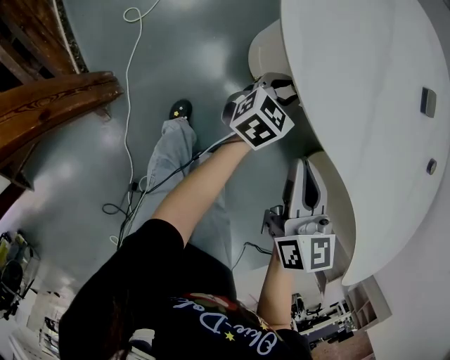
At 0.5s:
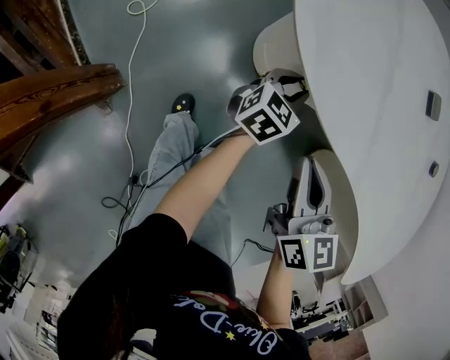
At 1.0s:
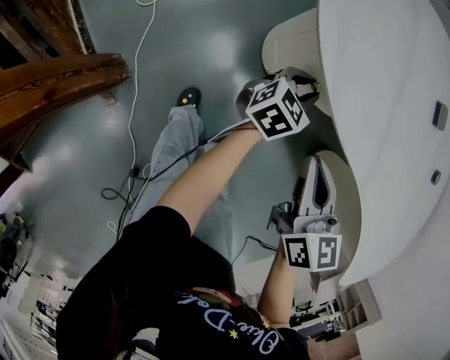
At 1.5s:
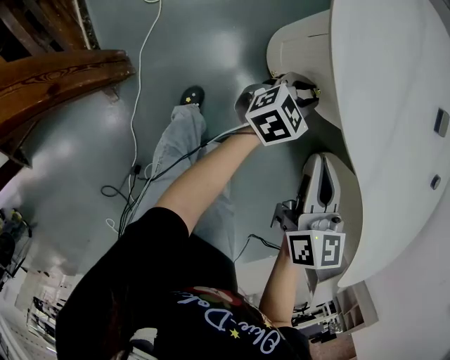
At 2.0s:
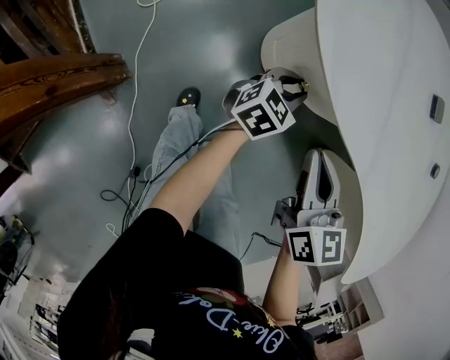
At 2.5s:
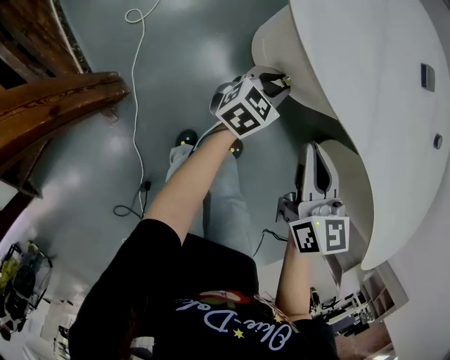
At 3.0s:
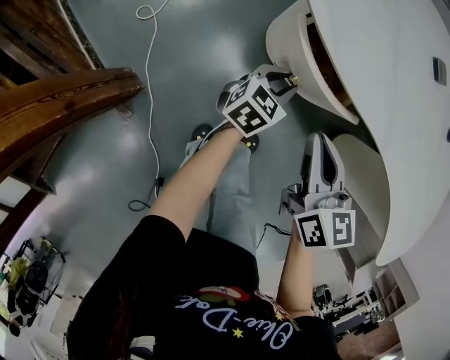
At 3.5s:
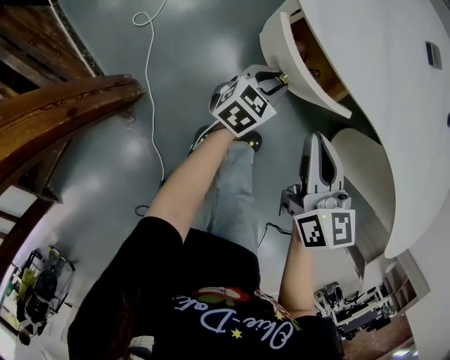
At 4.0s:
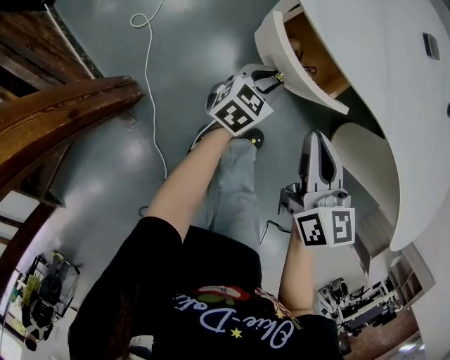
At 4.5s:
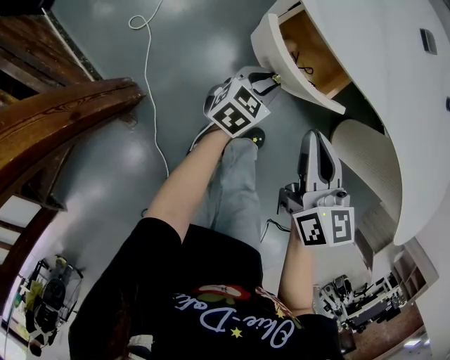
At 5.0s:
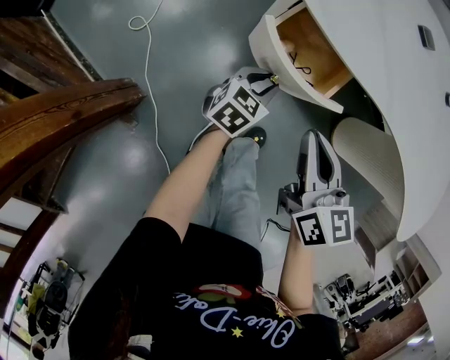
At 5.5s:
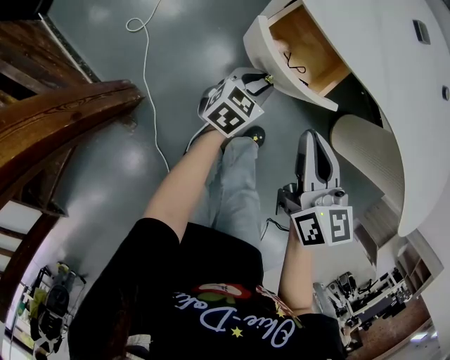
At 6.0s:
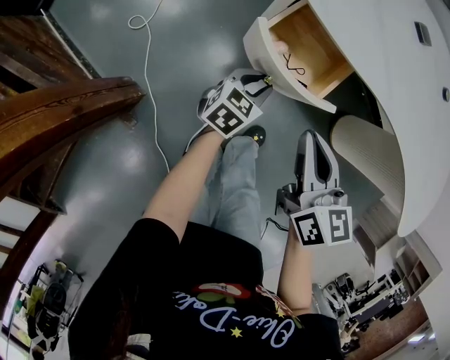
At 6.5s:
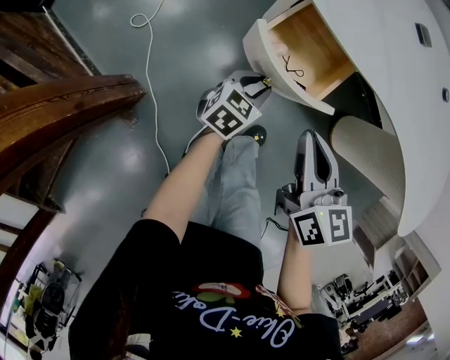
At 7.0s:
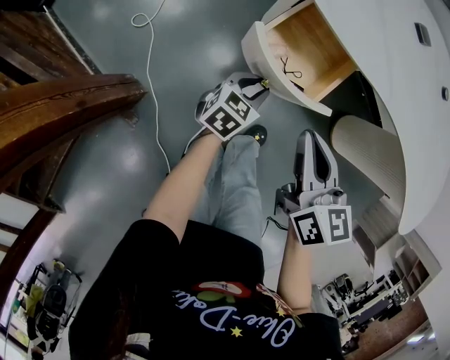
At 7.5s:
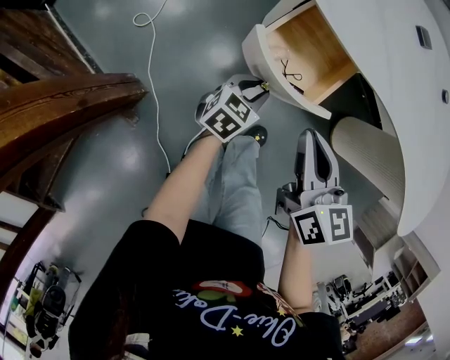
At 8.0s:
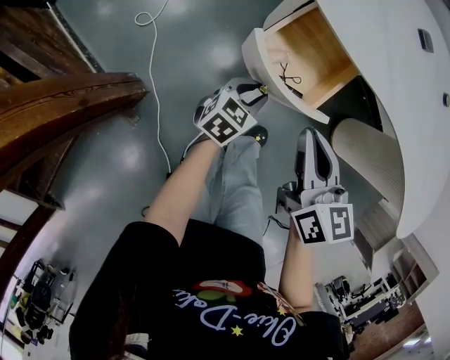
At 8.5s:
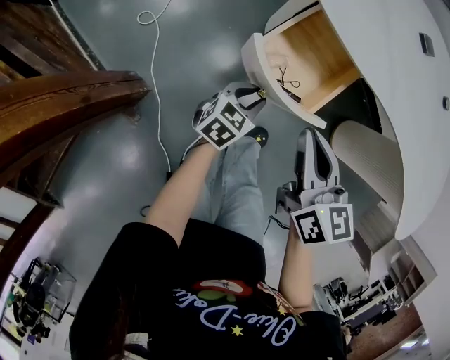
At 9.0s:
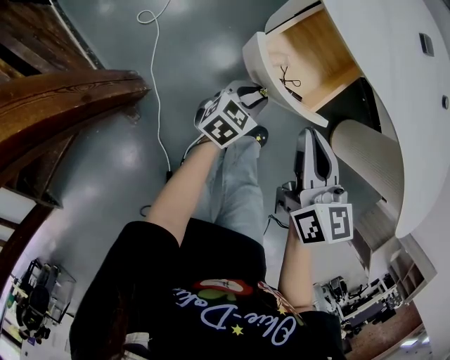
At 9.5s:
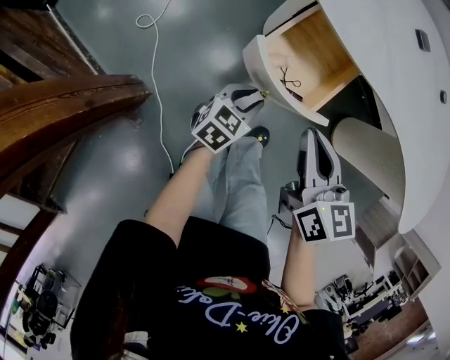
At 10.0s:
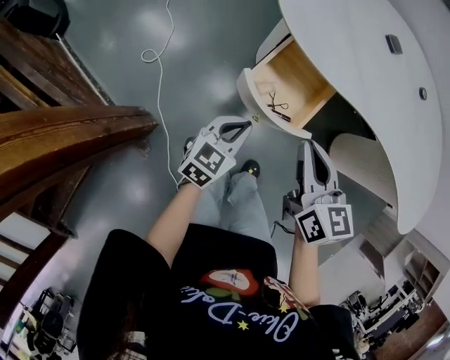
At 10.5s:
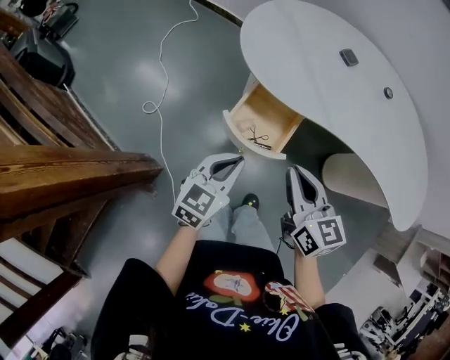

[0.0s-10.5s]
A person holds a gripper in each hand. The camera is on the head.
0.0s to 2.0s: The grippers make only small movements.
2.0s to 4.0s: The grippers both shift backward by about 5 cm.
4.0s to 6.5s: Both grippers move backward, about 5 cm.
6.5s to 8.5s: The grippers move only a little.
8.5s to 10.5s: The left gripper is displaced upward by about 25 cm, and closes up; the right gripper shifts about 10 cm upward.

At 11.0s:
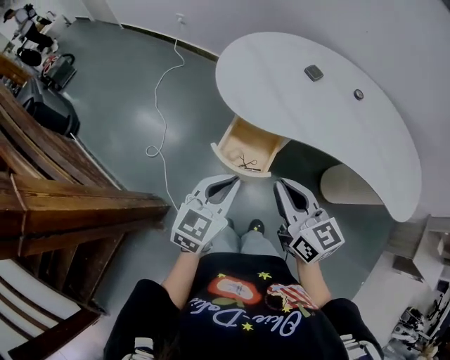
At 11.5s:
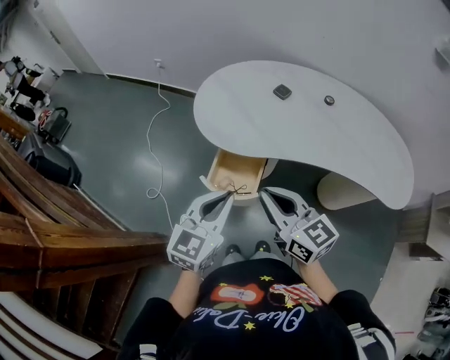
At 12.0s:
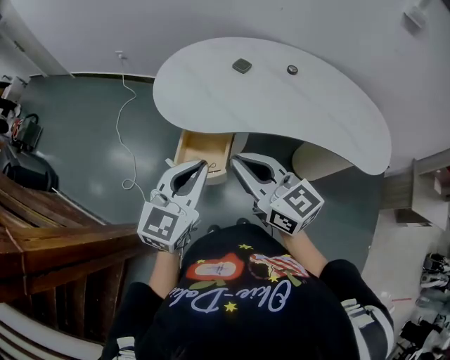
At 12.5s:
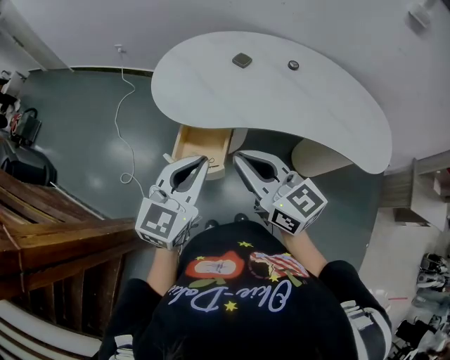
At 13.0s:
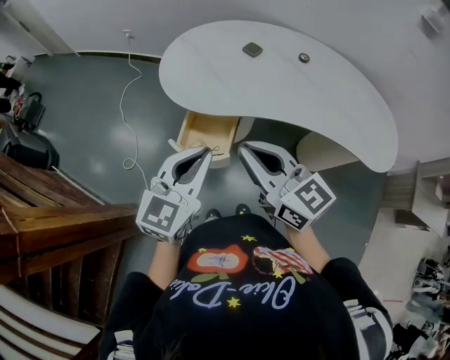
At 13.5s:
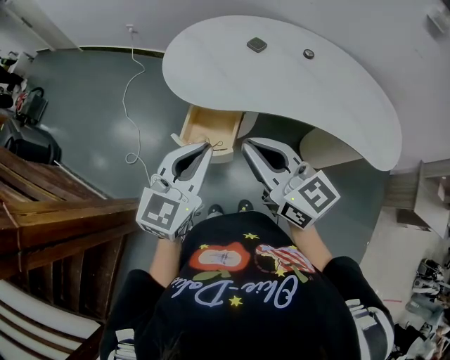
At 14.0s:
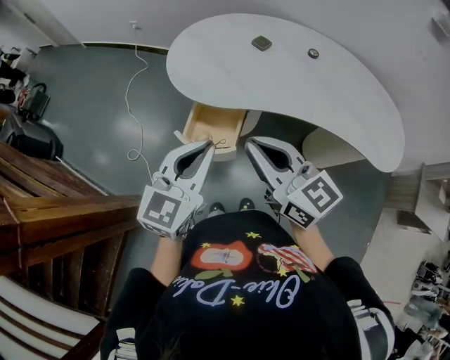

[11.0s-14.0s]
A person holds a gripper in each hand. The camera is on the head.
11.0s to 12.5s: Both grippers move upward and to the right, about 10 cm.
12.5s to 14.0s: The grippers make only small movements.

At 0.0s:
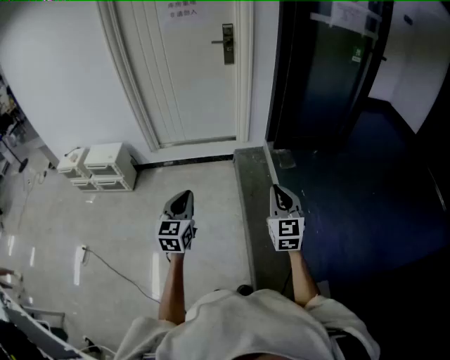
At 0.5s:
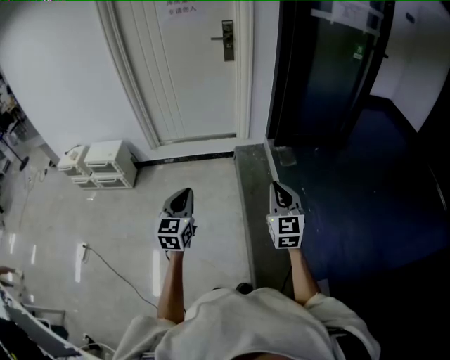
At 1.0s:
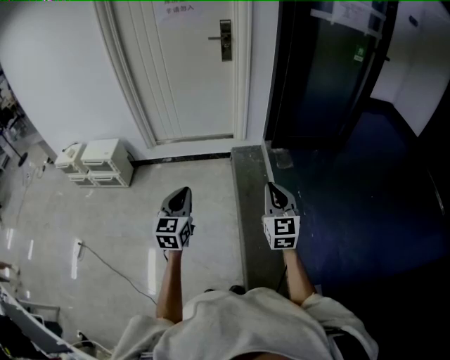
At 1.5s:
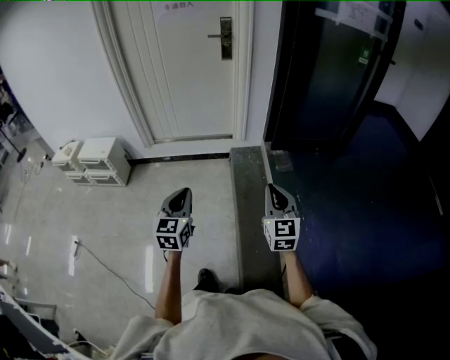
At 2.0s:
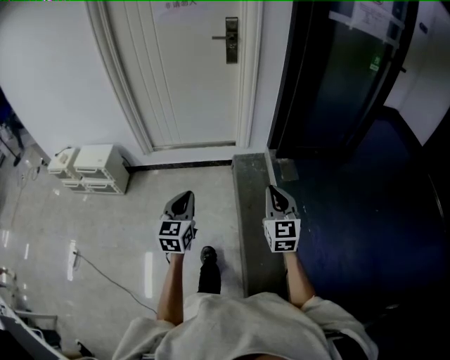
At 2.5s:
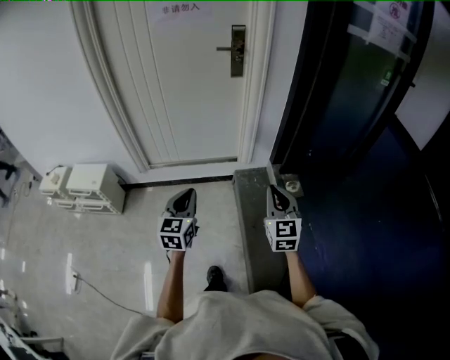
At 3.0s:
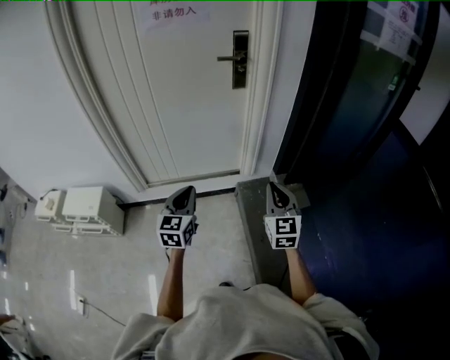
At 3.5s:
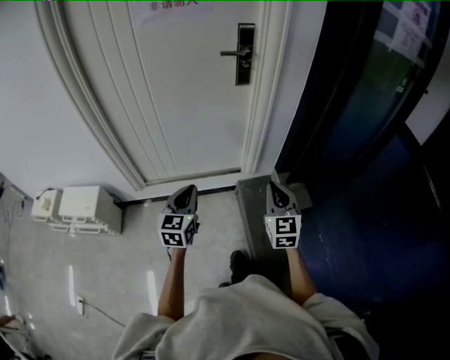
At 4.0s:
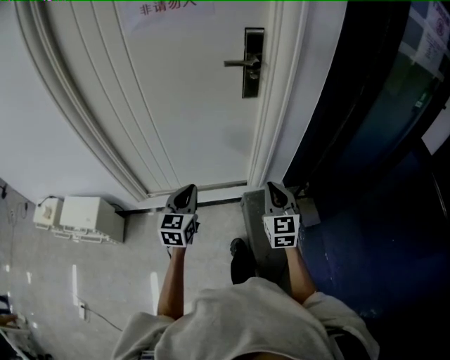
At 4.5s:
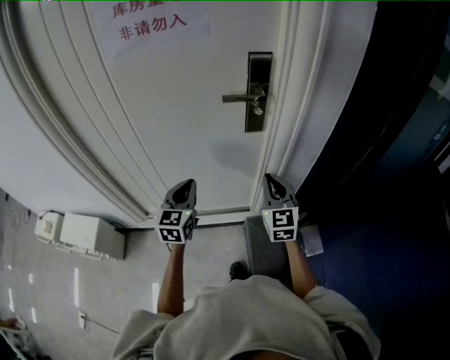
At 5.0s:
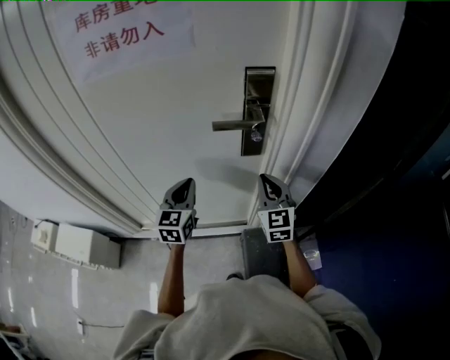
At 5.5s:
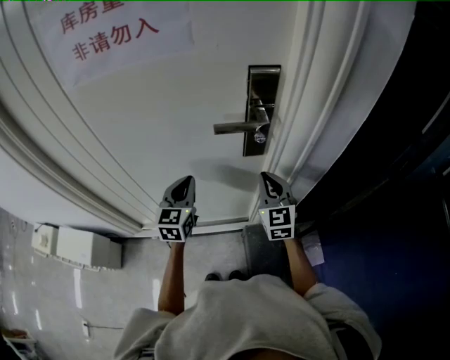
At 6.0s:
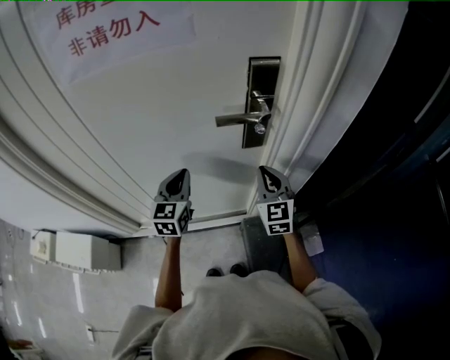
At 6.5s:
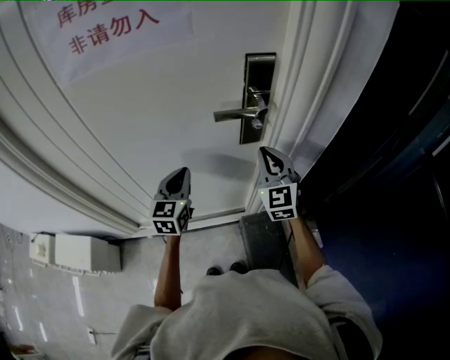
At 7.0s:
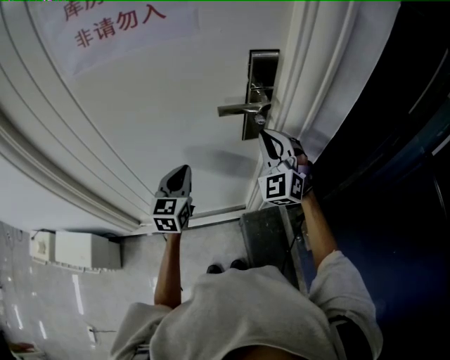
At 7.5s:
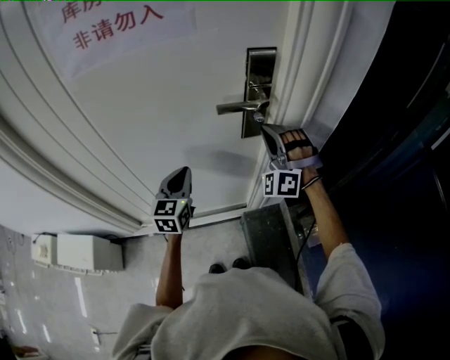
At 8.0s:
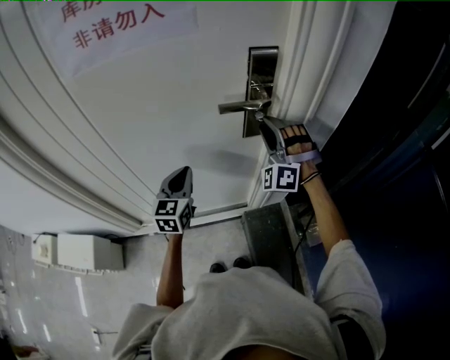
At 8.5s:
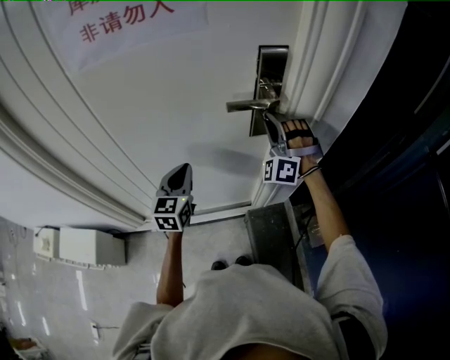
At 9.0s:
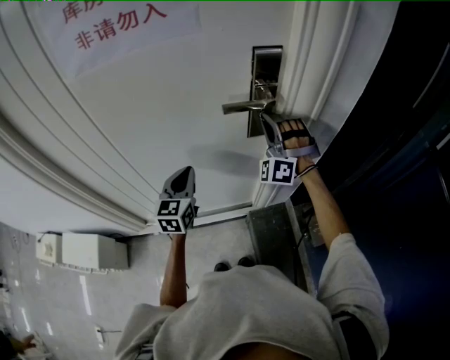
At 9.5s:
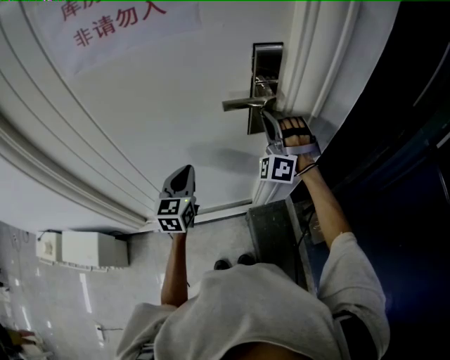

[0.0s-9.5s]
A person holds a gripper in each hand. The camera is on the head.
0.0s to 2.0s: The grippers both shift forward by about 20 cm.
2.0s to 4.0s: Both grippers are carried forward, approximately 50 cm.
4.0s to 5.5s: The grippers both shift forward by roughly 35 cm.
5.5s to 7.5s: The right gripper heads upward, covering roughly 10 cm, and rolls counterclockwise, seen from behind, by some 70 degrees.
7.5s to 9.5s: The right gripper opens, then closes again.

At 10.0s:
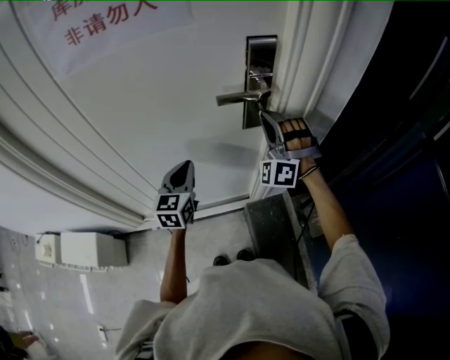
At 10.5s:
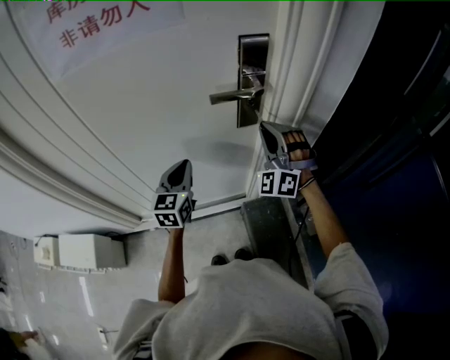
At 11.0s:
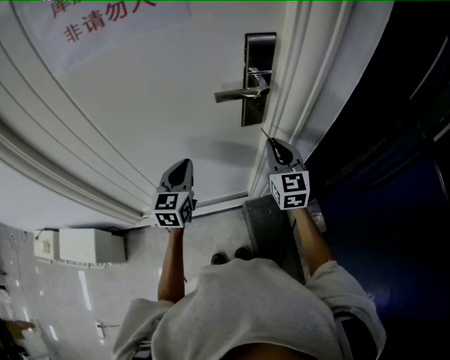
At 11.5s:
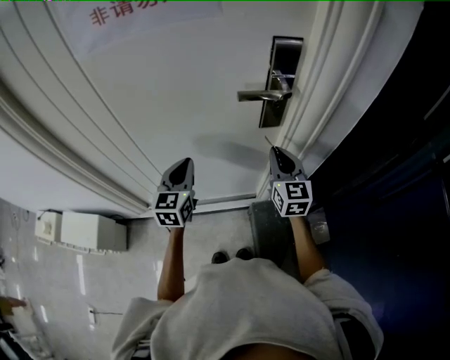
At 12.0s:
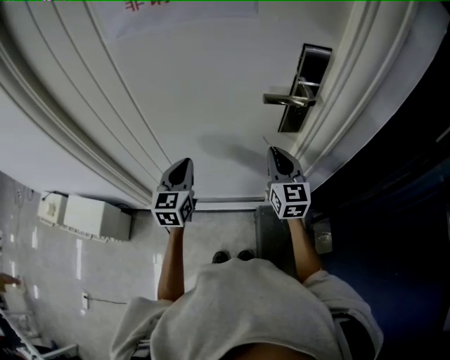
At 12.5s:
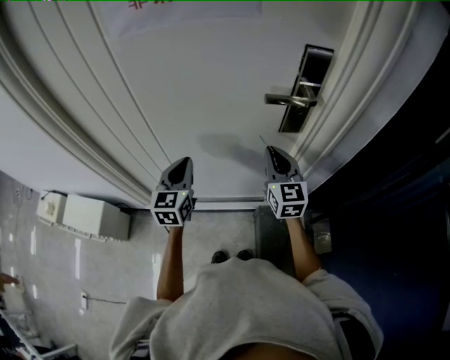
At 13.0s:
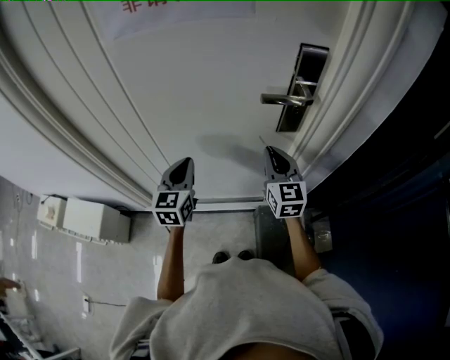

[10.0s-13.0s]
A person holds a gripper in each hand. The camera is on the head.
10.0s to 11.5s: The right gripper travels downward and backward by roughly 10 cm, and rolls clockwise, seen from behind, by some 80 degrees.
11.5s to 13.0s: The left gripper changes place by some 5 cm. Meanwhile the right gripper is displaced to the left by some 5 cm.
